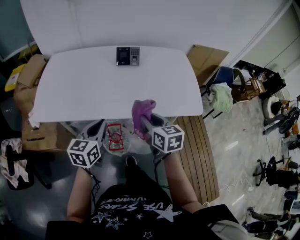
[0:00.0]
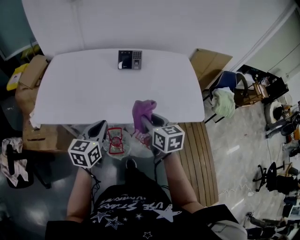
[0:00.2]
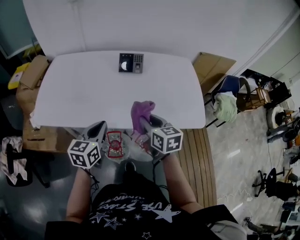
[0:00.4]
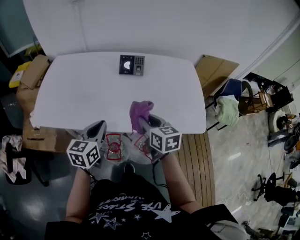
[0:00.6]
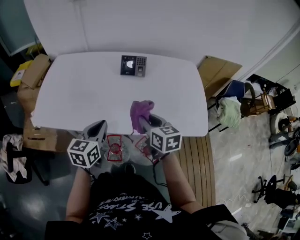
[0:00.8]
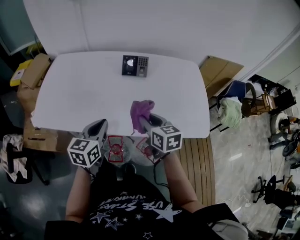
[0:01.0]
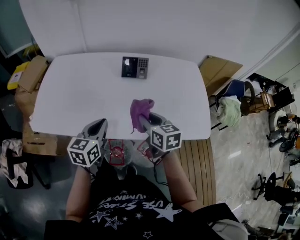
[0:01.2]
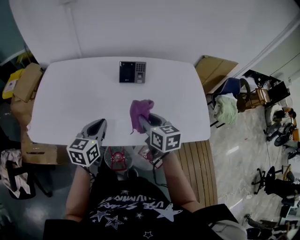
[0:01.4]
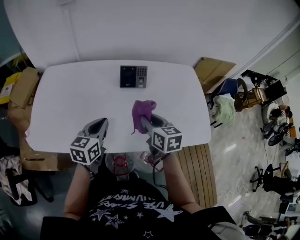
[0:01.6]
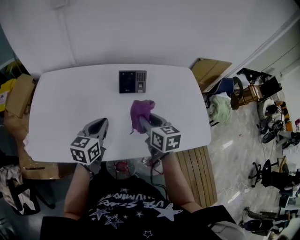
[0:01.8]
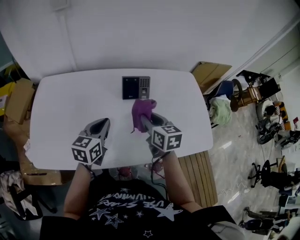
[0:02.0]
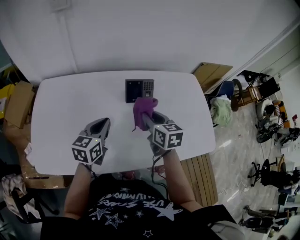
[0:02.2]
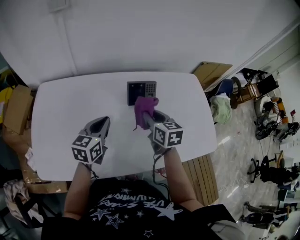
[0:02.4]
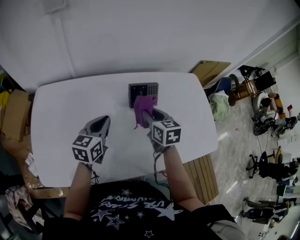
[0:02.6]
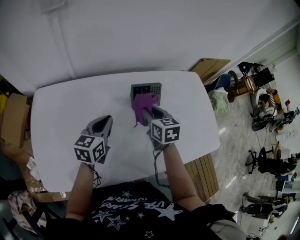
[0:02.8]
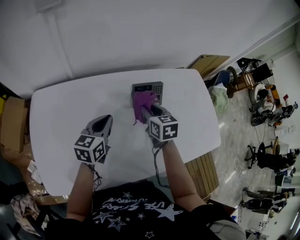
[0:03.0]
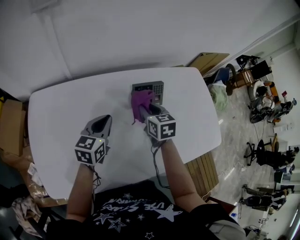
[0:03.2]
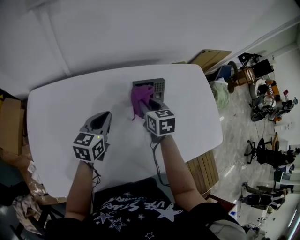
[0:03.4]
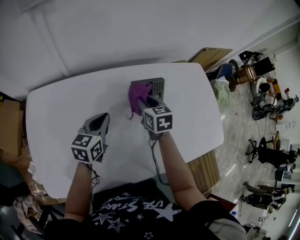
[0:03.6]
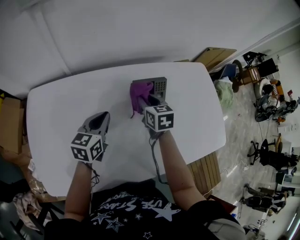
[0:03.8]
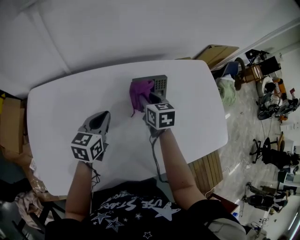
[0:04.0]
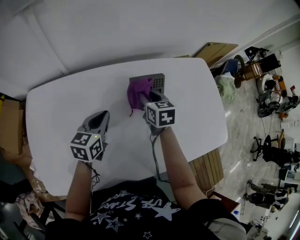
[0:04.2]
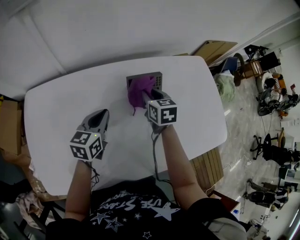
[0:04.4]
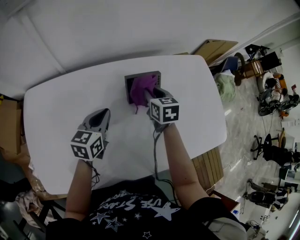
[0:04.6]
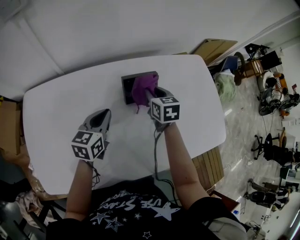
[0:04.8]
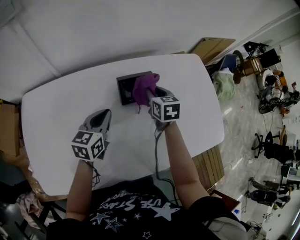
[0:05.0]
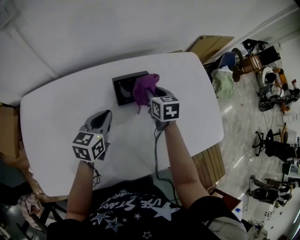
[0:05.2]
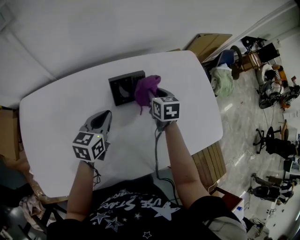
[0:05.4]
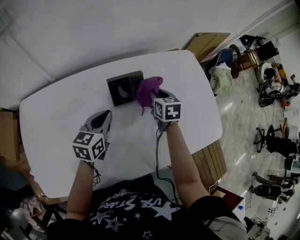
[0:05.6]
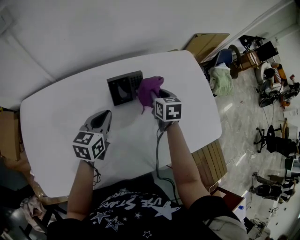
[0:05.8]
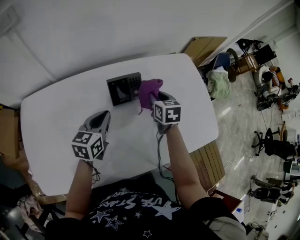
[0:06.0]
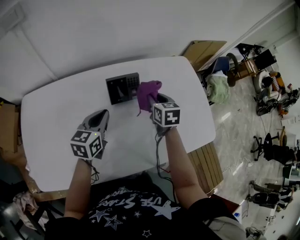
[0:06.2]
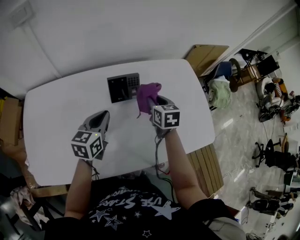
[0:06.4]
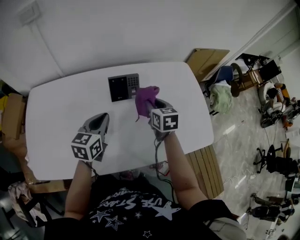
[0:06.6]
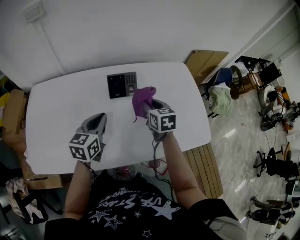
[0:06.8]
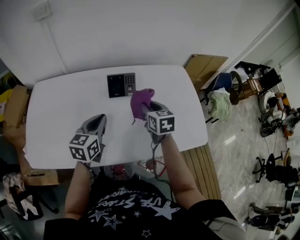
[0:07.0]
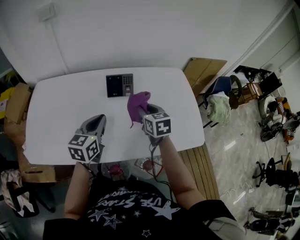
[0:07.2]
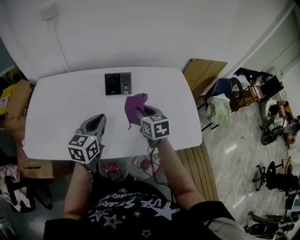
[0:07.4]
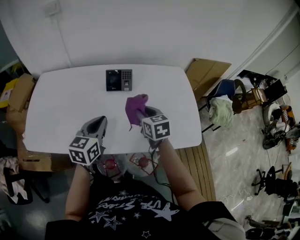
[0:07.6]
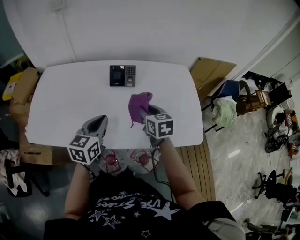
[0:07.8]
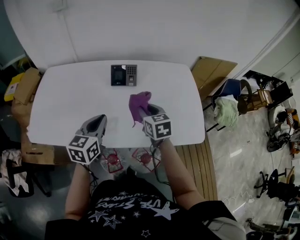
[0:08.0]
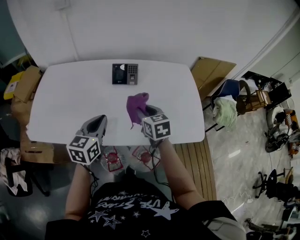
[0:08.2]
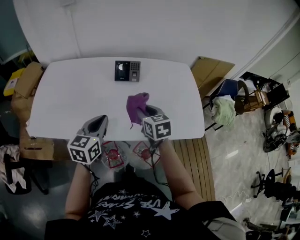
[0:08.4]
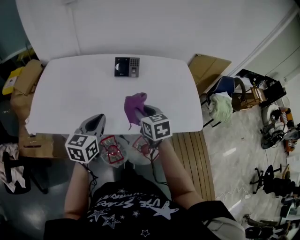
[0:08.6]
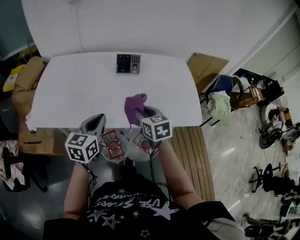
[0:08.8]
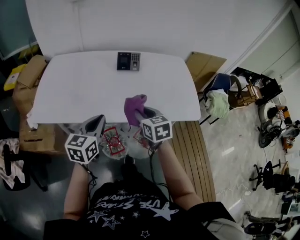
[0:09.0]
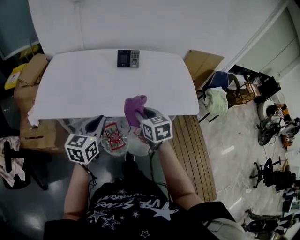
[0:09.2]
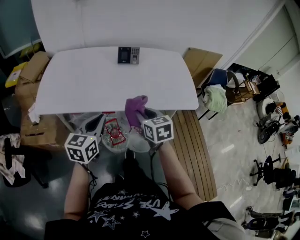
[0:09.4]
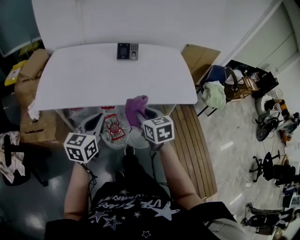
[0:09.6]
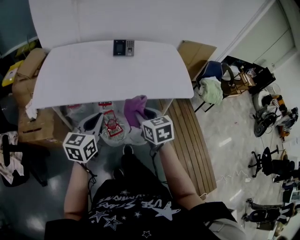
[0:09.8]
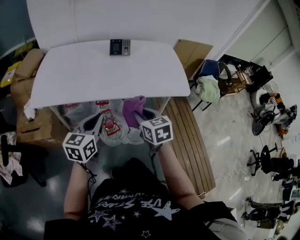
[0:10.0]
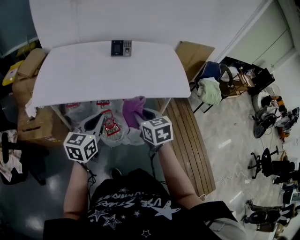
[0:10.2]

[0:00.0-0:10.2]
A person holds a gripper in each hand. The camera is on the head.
0:00.0 to 0:01.4: Both grippers travel together forward, some 15 cm.
0:01.4 to 0:03.0: The grippers both shift forward and to the left by some 25 cm.
0:03.0 to 0:04.4: The right gripper goes some 5 cm forward. The left gripper ends up some 5 cm from where it was.
0:04.4 to 0:05.8: The grippers both shift to the right by roughly 10 cm.
0:05.8 to 0:07.2: The right gripper moves backward and upward, roughly 15 cm, and swivels approximately 20 degrees. Meanwhile the left gripper heads backward, upward and to the right, covering about 20 cm.
0:07.2 to 0:08.8: Both grippers travel together backward, some 20 cm.
0:08.8 to 0:10.2: Both grippers move backward, about 20 cm.

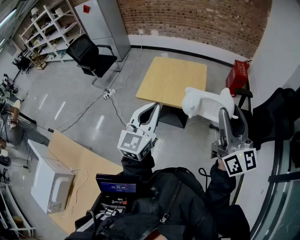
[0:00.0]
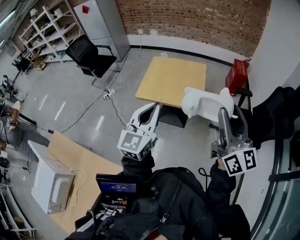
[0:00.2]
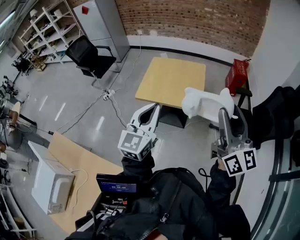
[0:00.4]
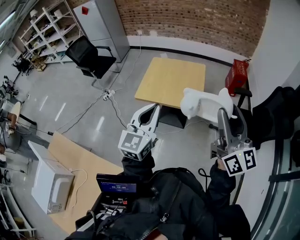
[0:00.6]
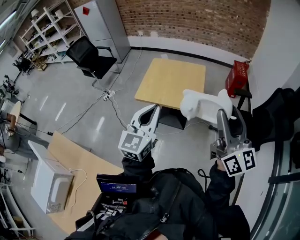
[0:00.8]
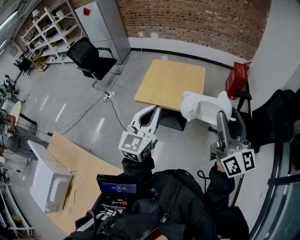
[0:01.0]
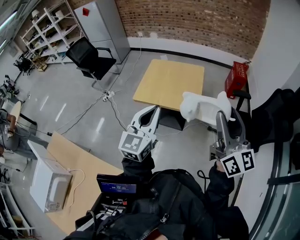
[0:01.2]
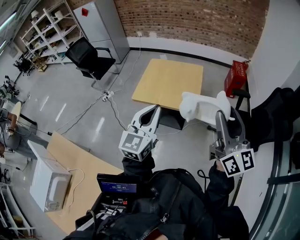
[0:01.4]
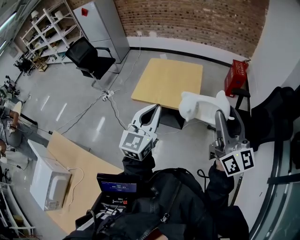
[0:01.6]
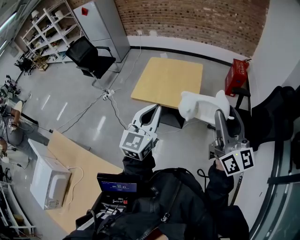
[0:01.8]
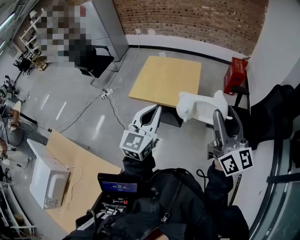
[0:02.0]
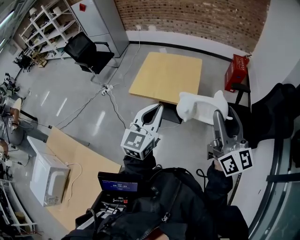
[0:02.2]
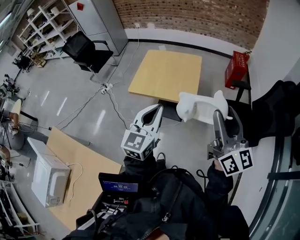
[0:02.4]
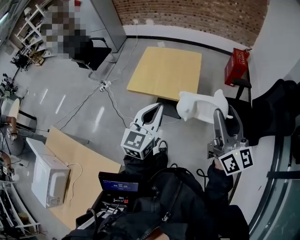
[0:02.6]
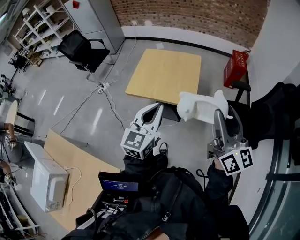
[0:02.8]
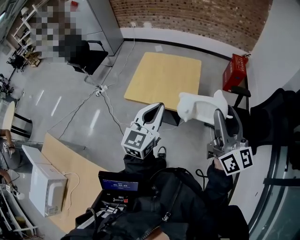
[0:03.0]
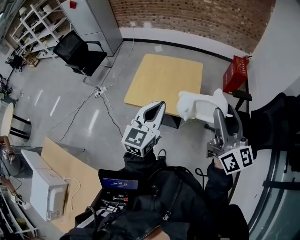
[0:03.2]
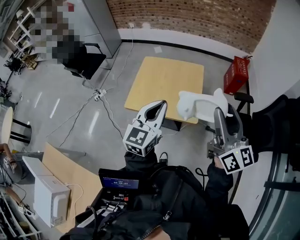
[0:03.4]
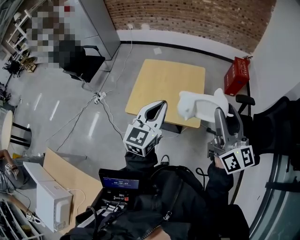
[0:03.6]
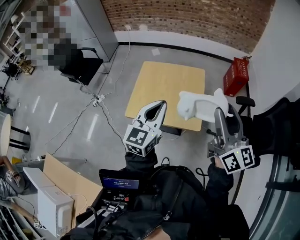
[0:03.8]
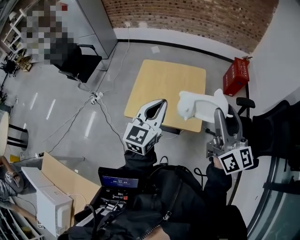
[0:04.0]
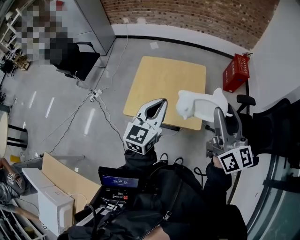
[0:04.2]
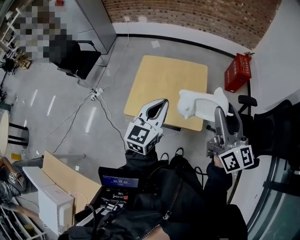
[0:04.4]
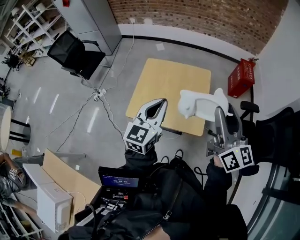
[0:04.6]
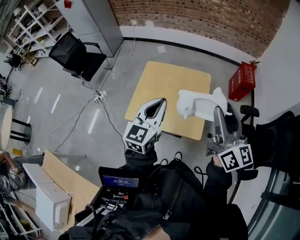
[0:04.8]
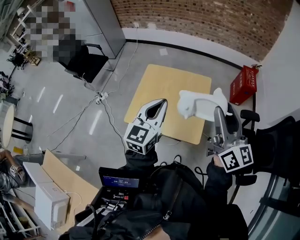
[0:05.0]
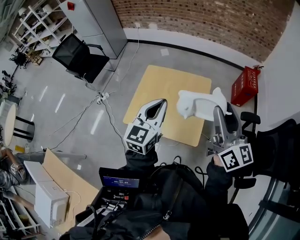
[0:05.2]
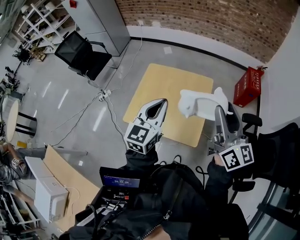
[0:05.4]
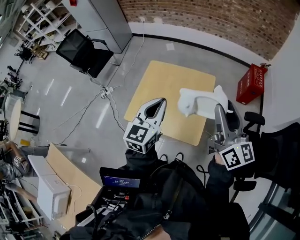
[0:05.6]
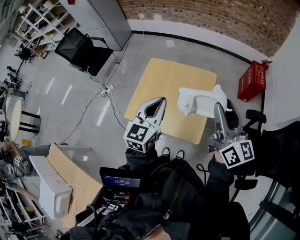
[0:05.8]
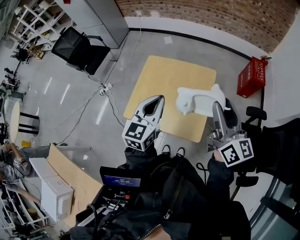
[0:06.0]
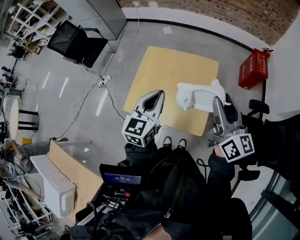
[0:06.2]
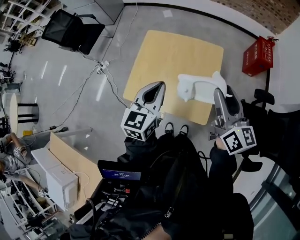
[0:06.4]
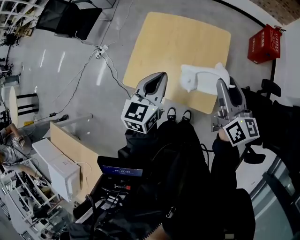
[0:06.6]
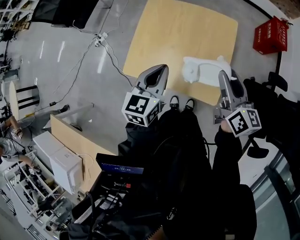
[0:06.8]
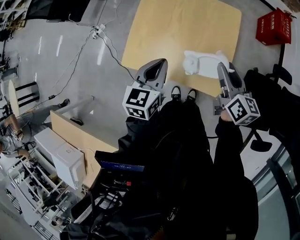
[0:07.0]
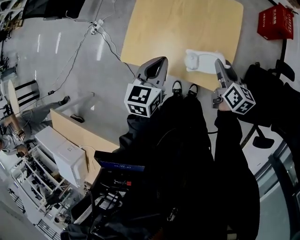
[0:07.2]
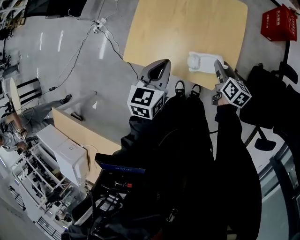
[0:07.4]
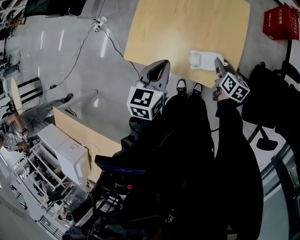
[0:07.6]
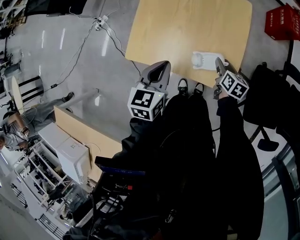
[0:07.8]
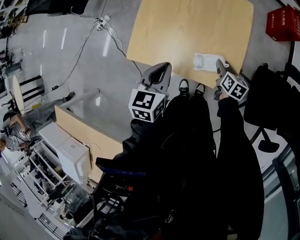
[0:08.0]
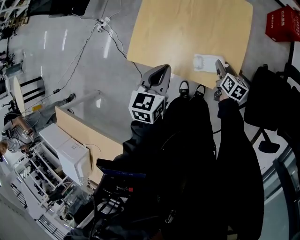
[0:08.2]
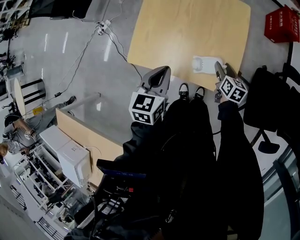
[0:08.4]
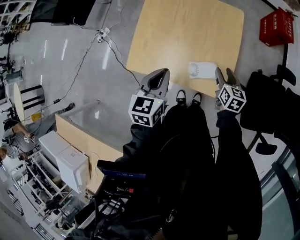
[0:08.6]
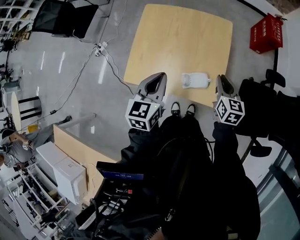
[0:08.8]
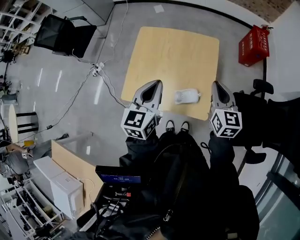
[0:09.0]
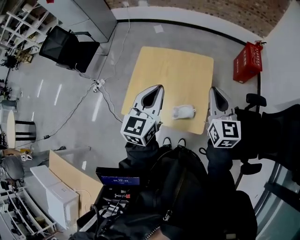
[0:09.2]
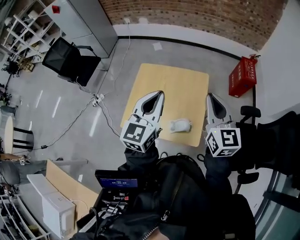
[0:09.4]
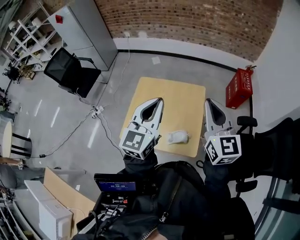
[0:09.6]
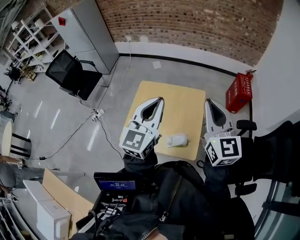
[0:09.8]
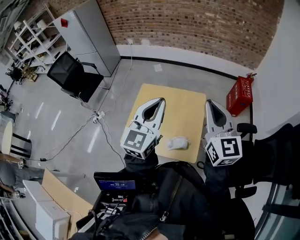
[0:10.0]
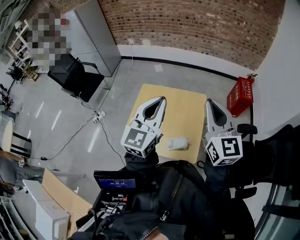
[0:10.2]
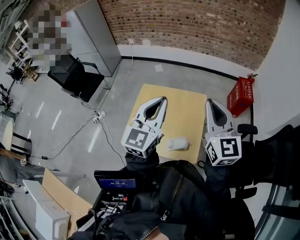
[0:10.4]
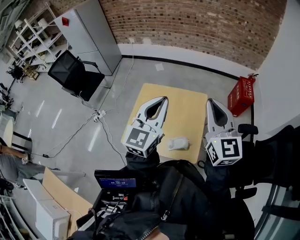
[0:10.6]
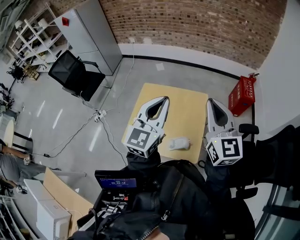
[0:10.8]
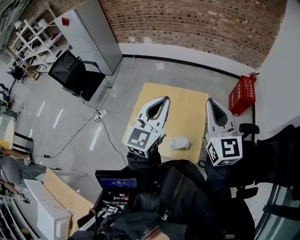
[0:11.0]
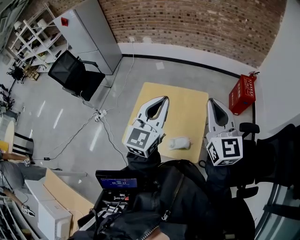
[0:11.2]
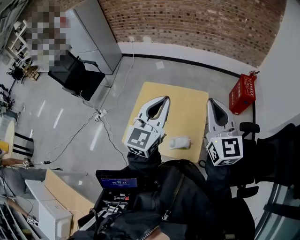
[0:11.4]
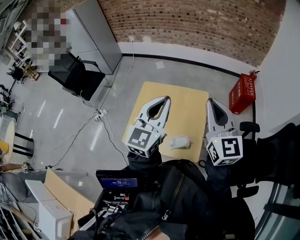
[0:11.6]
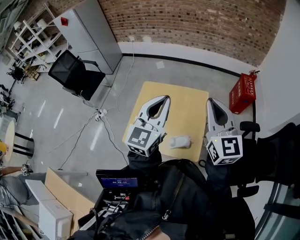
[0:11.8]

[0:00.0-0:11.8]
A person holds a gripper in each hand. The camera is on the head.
0:00.0 to 0:01.4: The grippers move only a little.
0:01.4 to 0:03.0: Both grippers move forward, about 10 cm.
0:03.0 to 0:04.4: The left gripper travels forward by roughly 15 cm, while the right gripper heads forward and to the left, covering some 20 cm.
0:04.4 to 0:06.0: Both grippers move forward, approximately 10 cm.
0:06.0 to 0:07.4: The left gripper shifts some 20 cm downward, and swivels about 20 degrees, while the right gripper goes approximately 40 cm downward, and tips its fingers downward by approximately 40 degrees.
0:07.4 to 0:08.8: The left gripper goes about 5 cm upward, while the right gripper shifts some 10 cm upward, rotates some 20 degrees, and closes its fingers.
0:08.8 to 0:10.4: Both grippers move upward, some 30 cm. The right gripper tips its fingers upward by roughly 30 degrees; the left gripper points its fingers about 30 degrees further upward.
0:10.4 to 0:11.8: Both grippers stay about where they are.

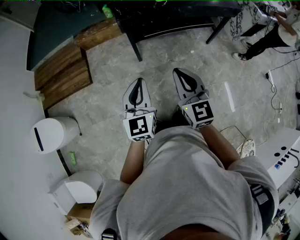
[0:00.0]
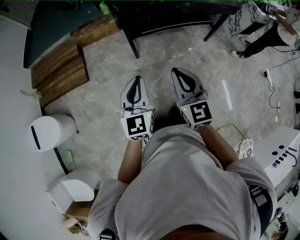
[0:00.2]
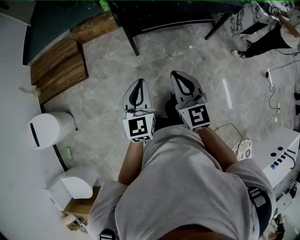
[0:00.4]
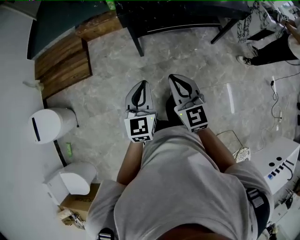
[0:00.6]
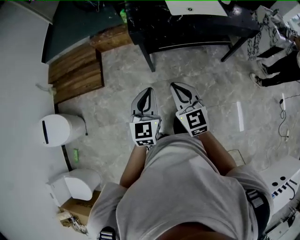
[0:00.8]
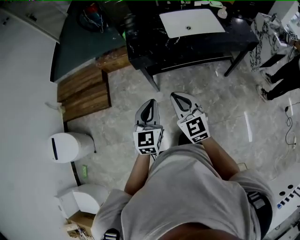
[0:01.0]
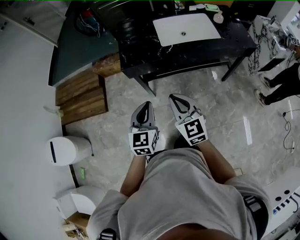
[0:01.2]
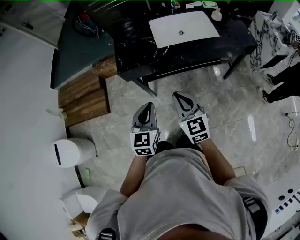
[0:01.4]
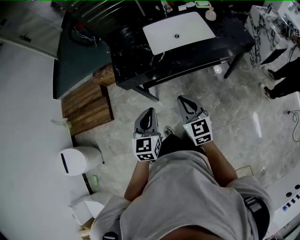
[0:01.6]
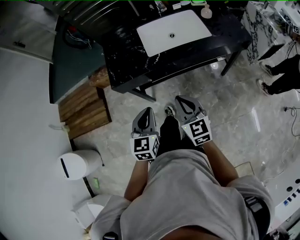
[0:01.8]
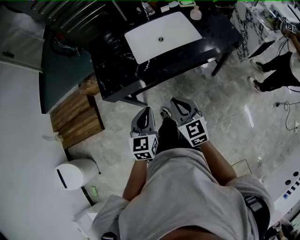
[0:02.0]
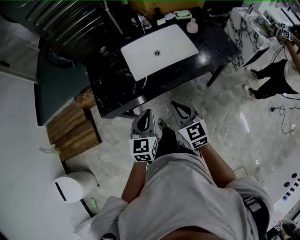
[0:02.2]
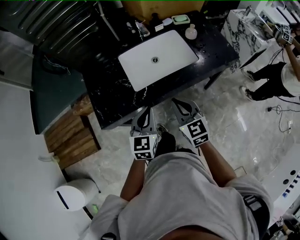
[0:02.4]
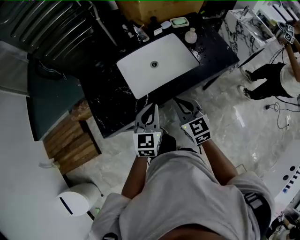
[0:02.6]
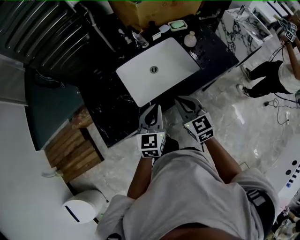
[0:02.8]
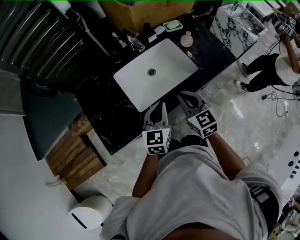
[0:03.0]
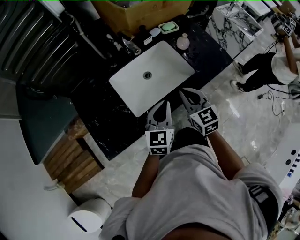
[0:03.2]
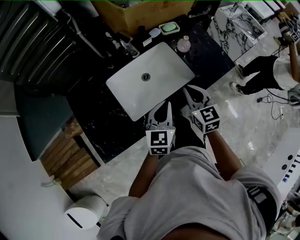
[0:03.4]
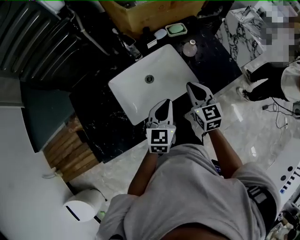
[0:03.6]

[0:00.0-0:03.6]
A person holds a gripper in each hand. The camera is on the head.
0:00.0 to 0:01.8: The grippers both shift forward and to the right by about 30 cm.
0:01.8 to 0:03.6: The pair of grippers is taken forward, roughly 40 cm. The right gripper swivels some 20 degrees; the left gripper turns by some 20 degrees.
